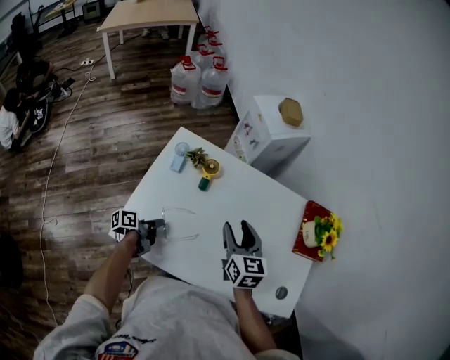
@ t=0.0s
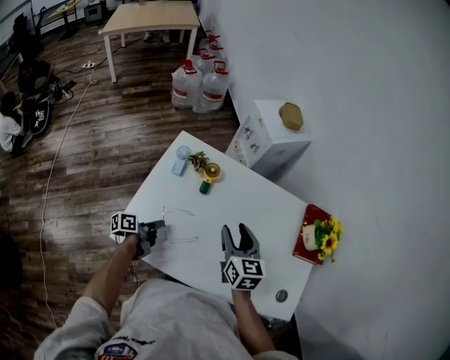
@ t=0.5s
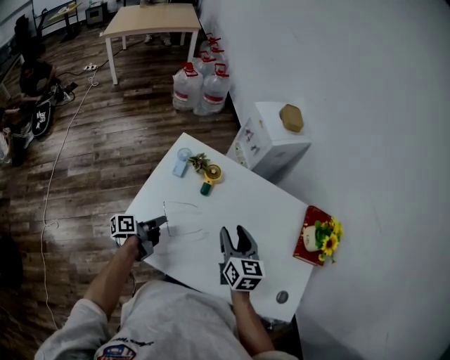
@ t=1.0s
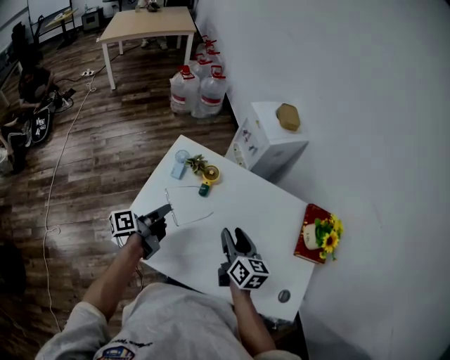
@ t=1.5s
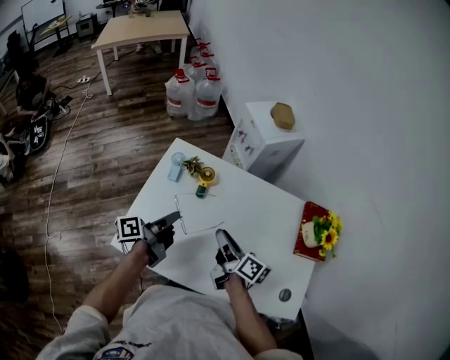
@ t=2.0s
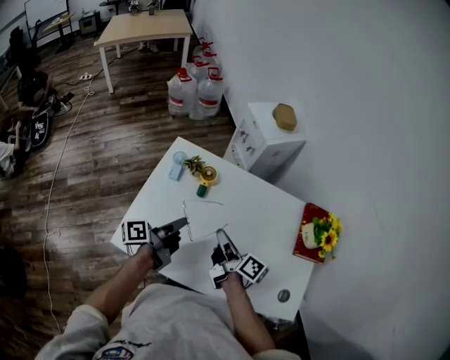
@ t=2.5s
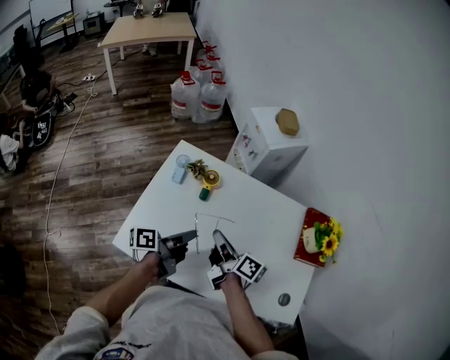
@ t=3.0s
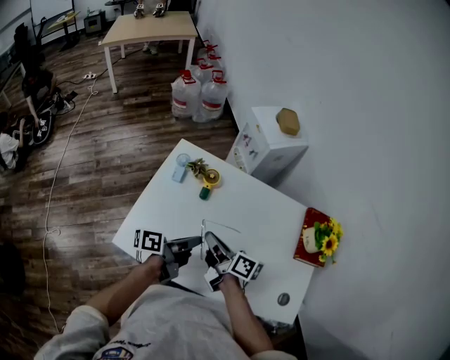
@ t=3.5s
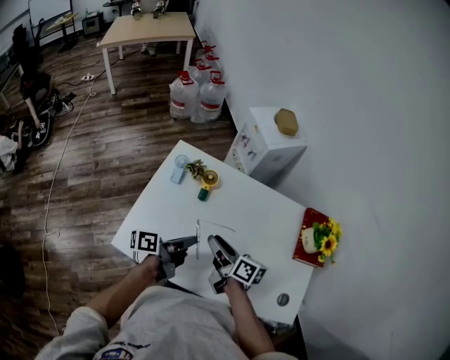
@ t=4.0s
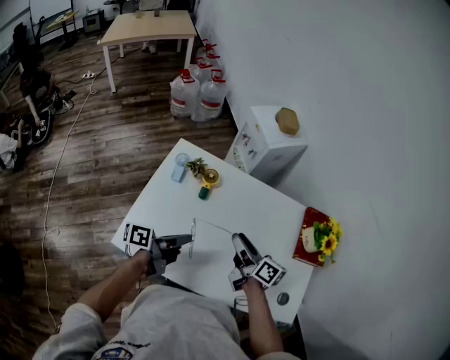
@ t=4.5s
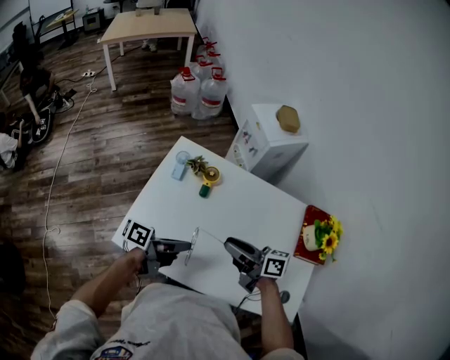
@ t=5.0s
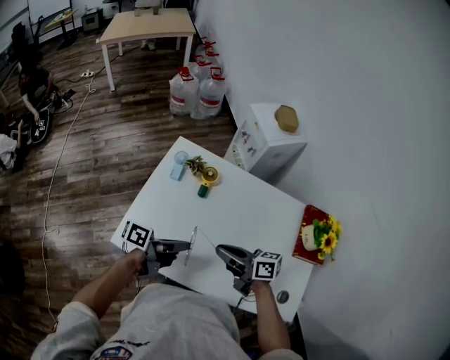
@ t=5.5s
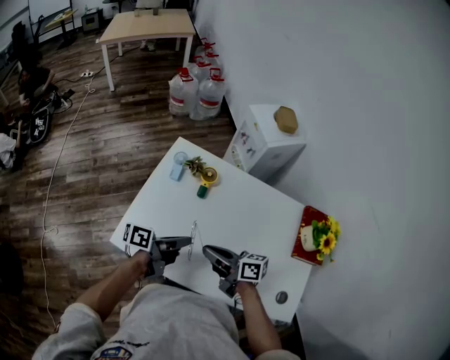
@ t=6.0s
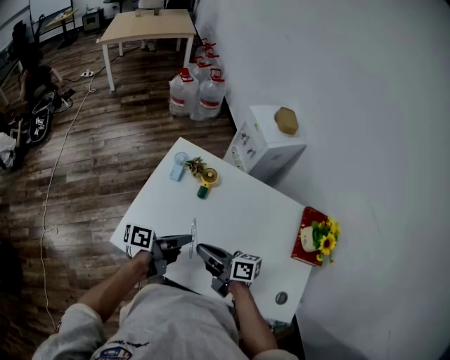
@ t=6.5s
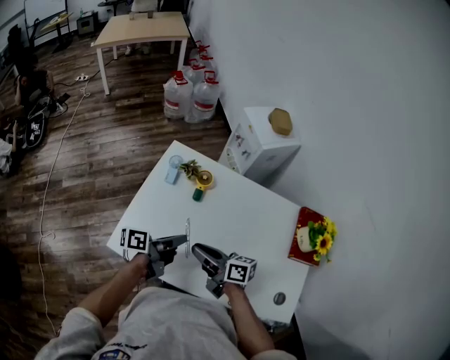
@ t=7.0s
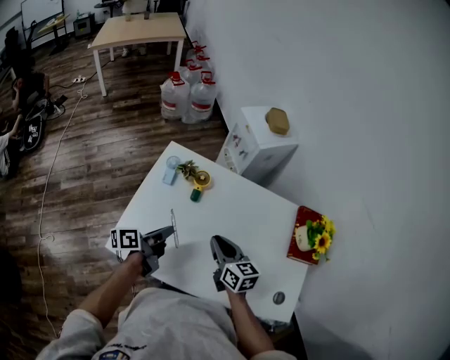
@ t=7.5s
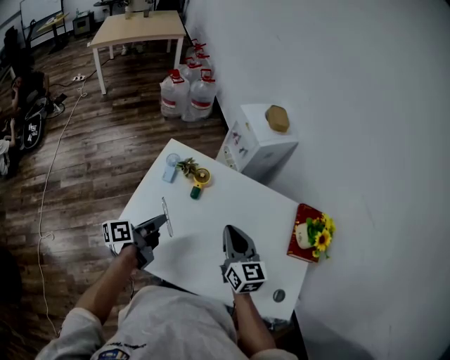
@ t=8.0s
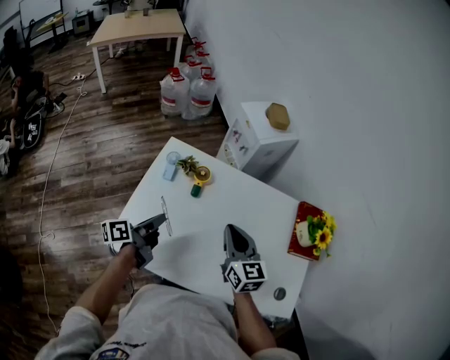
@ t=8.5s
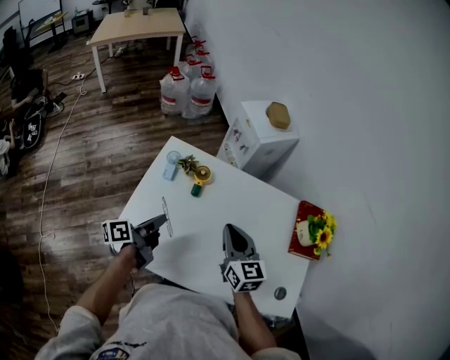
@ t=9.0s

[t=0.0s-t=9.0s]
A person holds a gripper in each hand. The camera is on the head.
t=0.0s to t=2.0s: The left gripper moves upward, some 20 cm, and swivels approximately 20 degrees; the right gripper rotates around the line of its fingers by some 50 degrees, clockwise from behind.
t=2.0s to t=4.5s: The left gripper travels backward and to the right by about 10 cm. Meanwhile the right gripper closes, then reopens.
t=4.5s to t=7.0s: The right gripper ends up roughly 15 cm from where it was, rotates about 30 degrees, and closes up.
t=7.0s to t=9.0s: The left gripper travels to the left by approximately 10 cm; the right gripper shifts about 15 cm to the right, forward and upward, and swivels roughly 60 degrees.

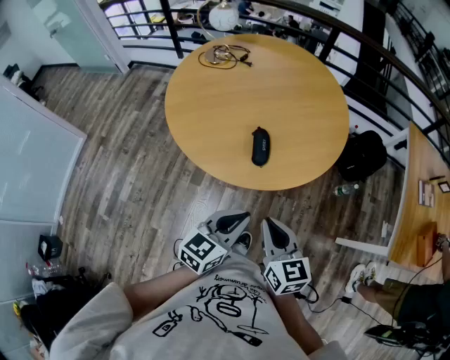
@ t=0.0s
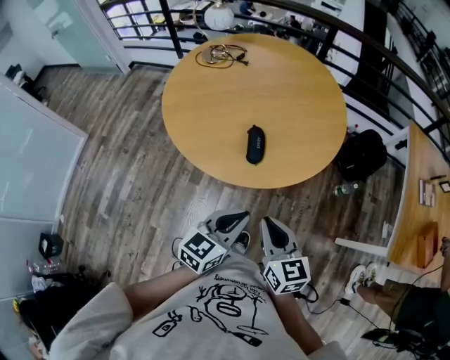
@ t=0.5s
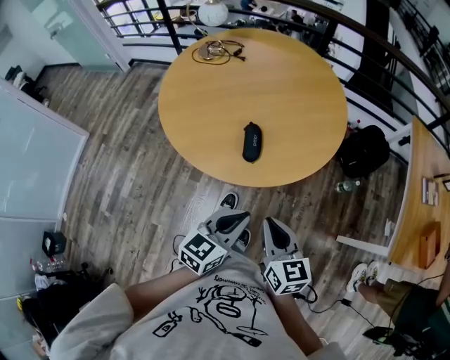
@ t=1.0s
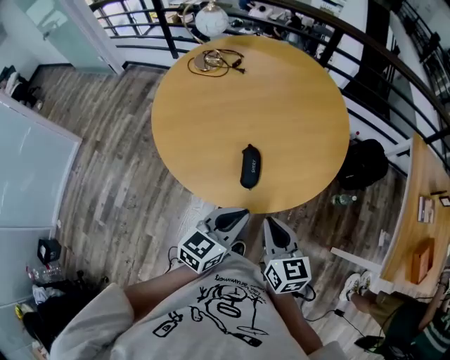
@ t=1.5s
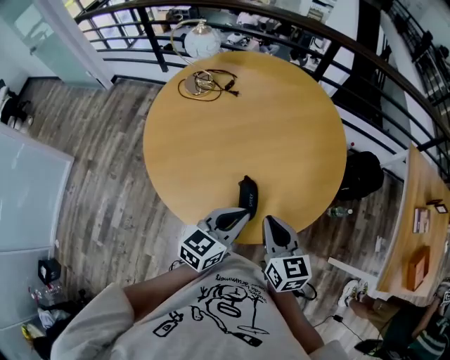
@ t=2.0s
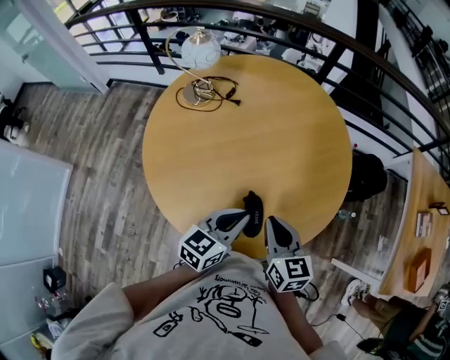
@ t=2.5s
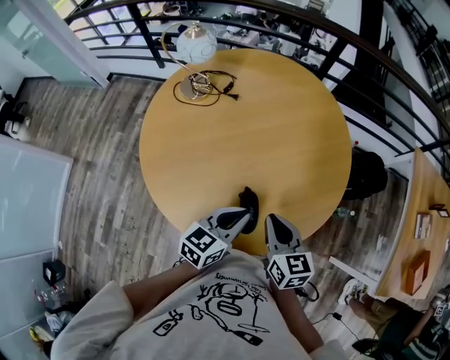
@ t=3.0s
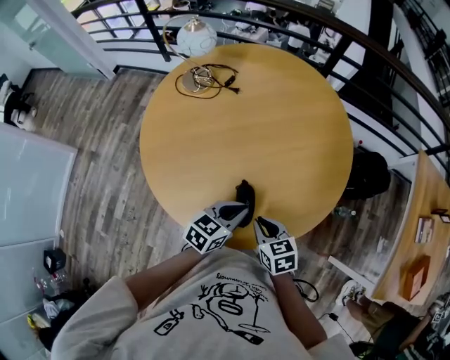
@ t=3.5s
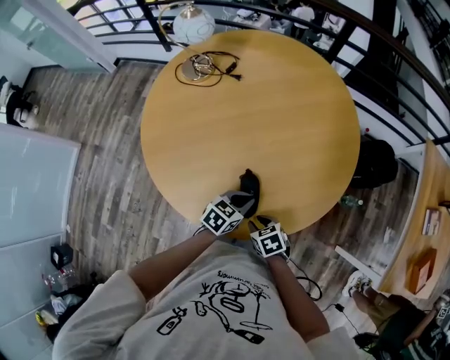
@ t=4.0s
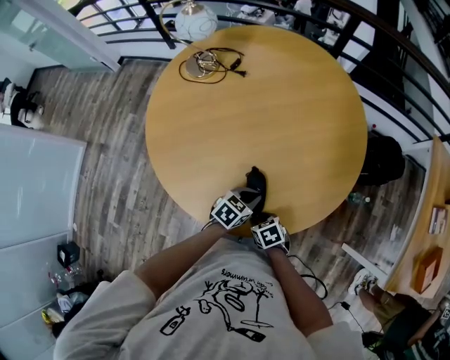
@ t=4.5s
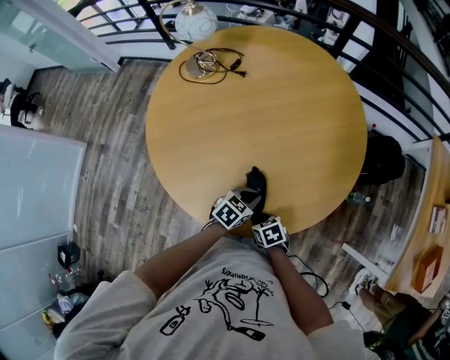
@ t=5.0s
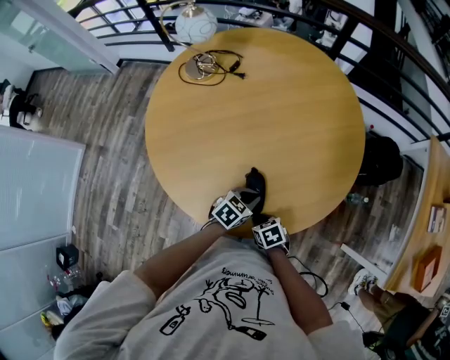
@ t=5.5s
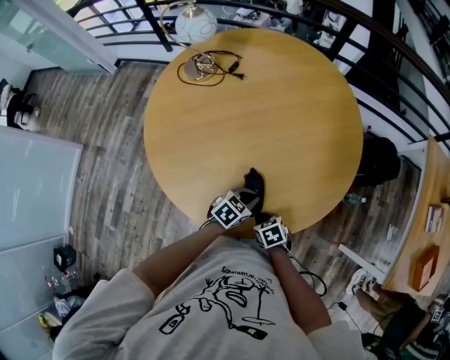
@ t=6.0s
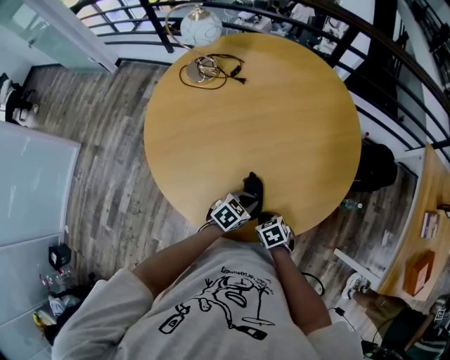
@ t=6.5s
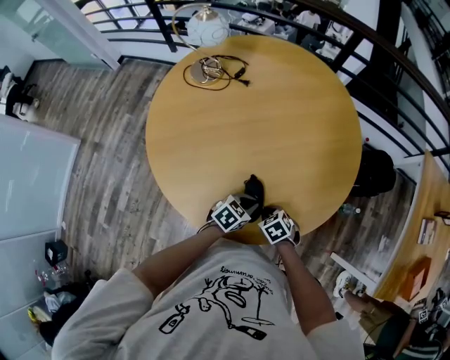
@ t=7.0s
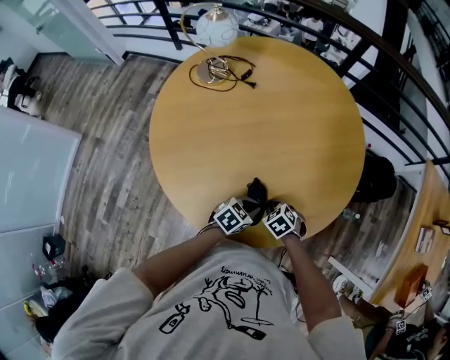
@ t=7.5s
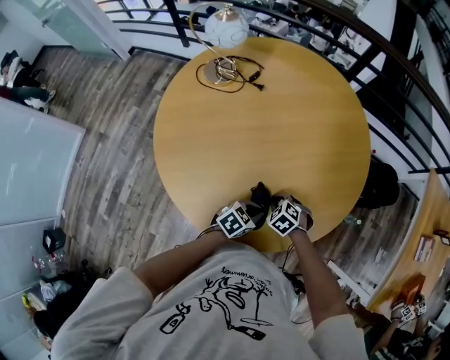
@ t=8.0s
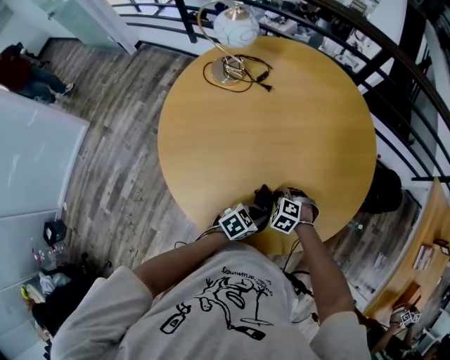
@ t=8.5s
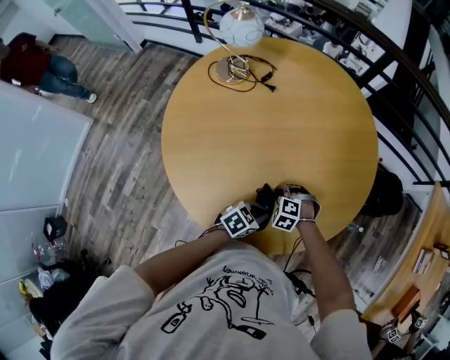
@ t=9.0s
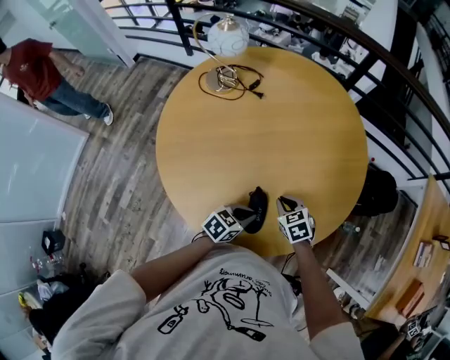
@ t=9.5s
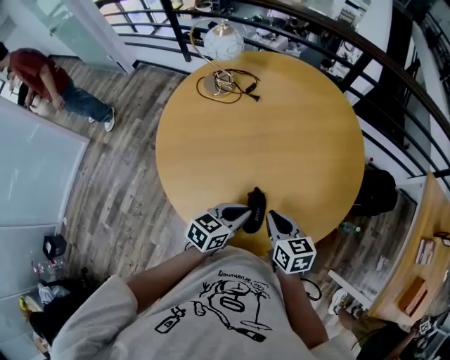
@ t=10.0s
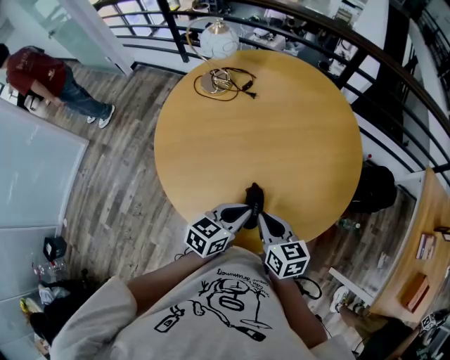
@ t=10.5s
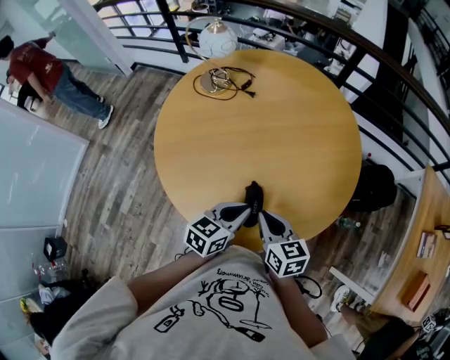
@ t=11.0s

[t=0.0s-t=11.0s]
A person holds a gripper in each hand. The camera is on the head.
t=0.0s to t=2.0s: The two grippers go approximately 25 cm forward.
t=2.0s to t=3.5s: The left gripper shifts roughly 10 cm downward and forward. The right gripper moves downward, roughly 10 cm, and rotates about 30 degrees.
t=3.5s to t=5.5s: The grippers both shift downward by approximately 15 cm. The right gripper turns by roughly 20 degrees, and opens, then closes once more. Meanwhile the left gripper rotates about 20 degrees.
t=5.5s to t=7.5s: The right gripper shifts by roughly 10 cm, and turns by approximately 30 degrees.
t=7.5s to t=9.0s: The right gripper moves some 5 cm, and rotates around the line of its fingers by some 40 degrees, counterclockwise from behind.
t=9.0s to t=11.0s: Both grippers move upward, some 20 cm. The right gripper twists approximately 70 degrees clockwise, seen from behind. Meanwhile the left gripper changes its angle by about 30 degrees.

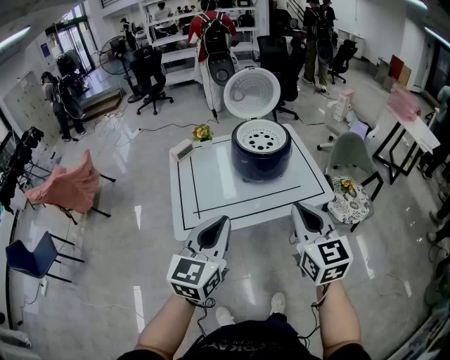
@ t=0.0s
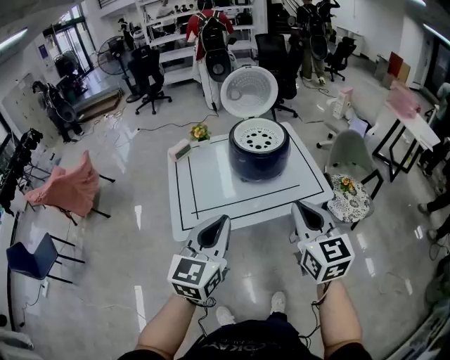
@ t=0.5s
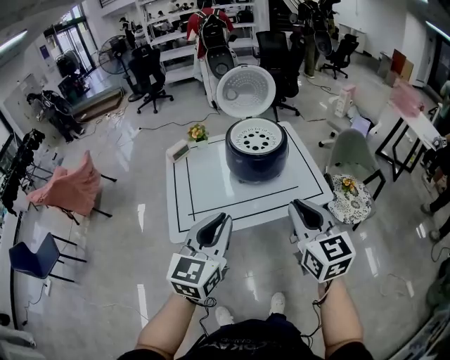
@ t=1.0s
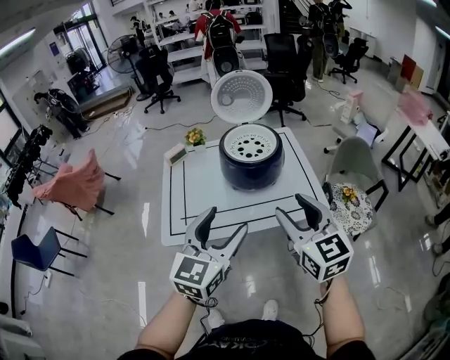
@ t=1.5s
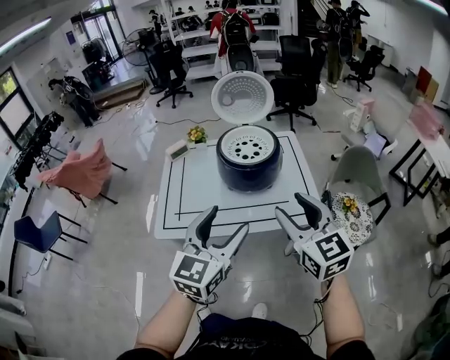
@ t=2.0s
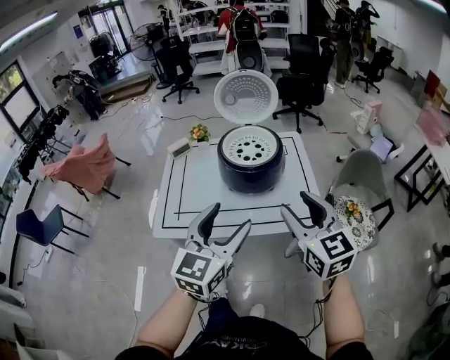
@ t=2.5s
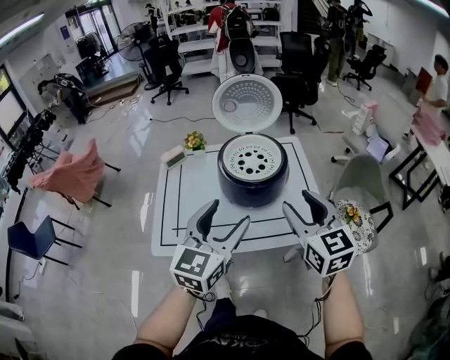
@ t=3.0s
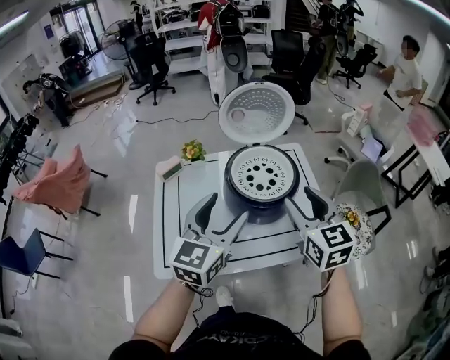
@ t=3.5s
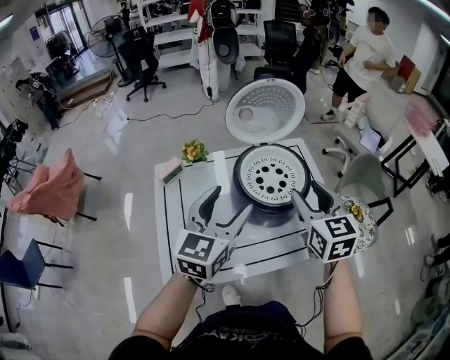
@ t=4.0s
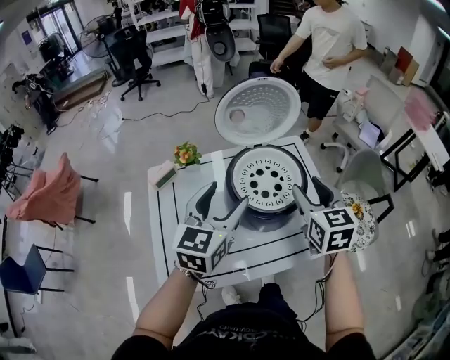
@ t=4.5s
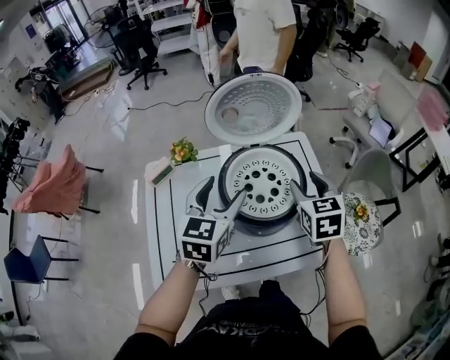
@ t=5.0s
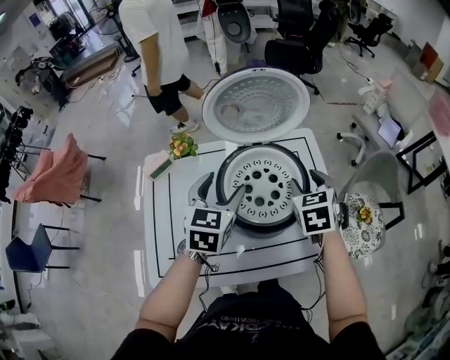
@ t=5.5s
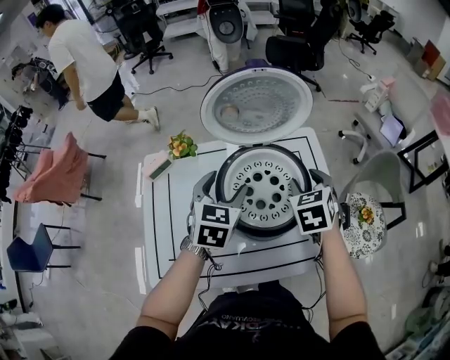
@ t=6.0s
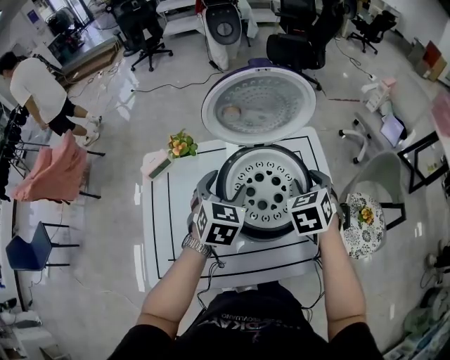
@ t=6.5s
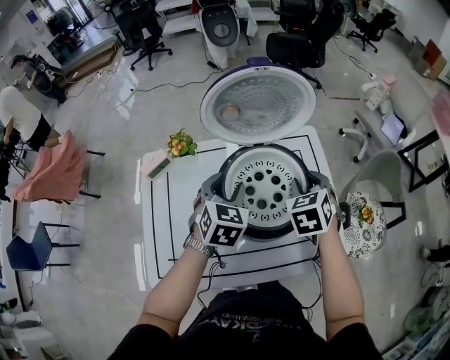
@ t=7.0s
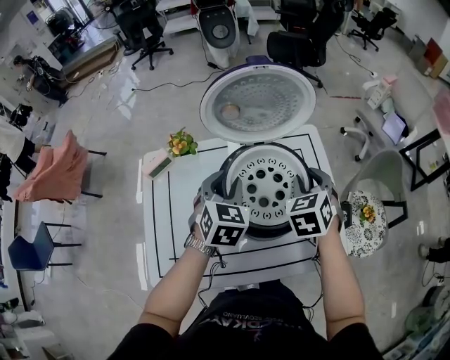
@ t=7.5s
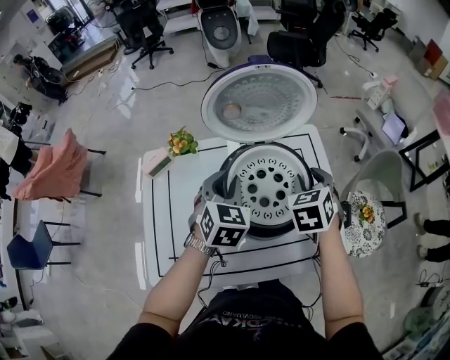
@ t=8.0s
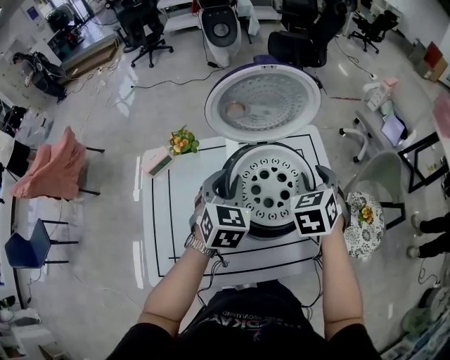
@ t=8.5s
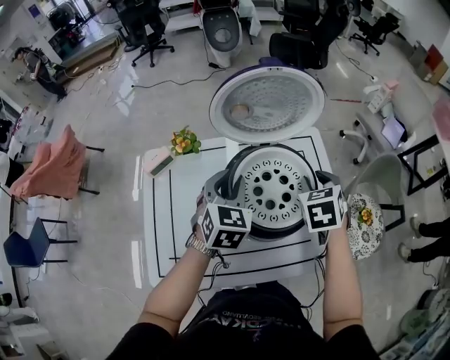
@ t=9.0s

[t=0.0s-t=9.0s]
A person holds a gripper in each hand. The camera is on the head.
t=0.0s to t=2.0s: The left gripper heads to the right, covering some 15 cm, and opens; the right gripper moves to the right and forward, roughly 15 cm, and opens up.
t=2.0s to t=4.5s: The right gripper is displaced forward by approximately 30 cm, and rotates some 30 degrees; the left gripper travels forward and to the left by roughly 35 cm.
t=4.5s to t=7.0s: The right gripper moves forward and downward, some 15 cm, and rotates approximately 30 degrees, while the left gripper shifts approximately 15 cm downward and forward, and changes its angle by roughly 30 degrees.
t=7.0s to t=9.0s: There are only small adjustments of the grippers.
